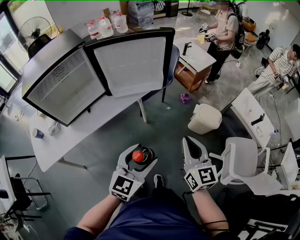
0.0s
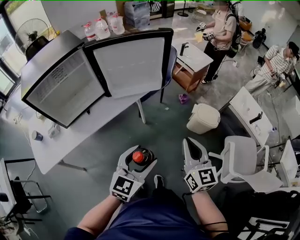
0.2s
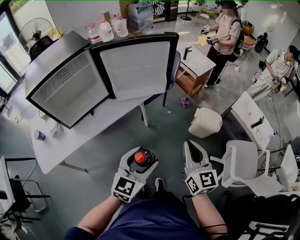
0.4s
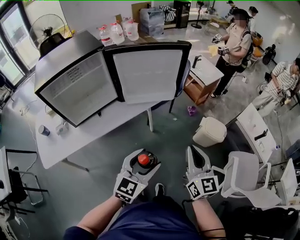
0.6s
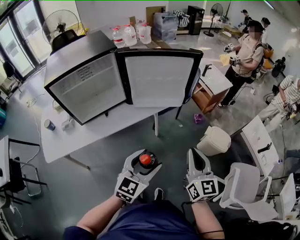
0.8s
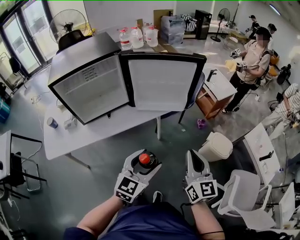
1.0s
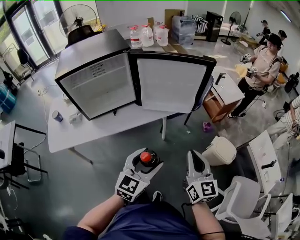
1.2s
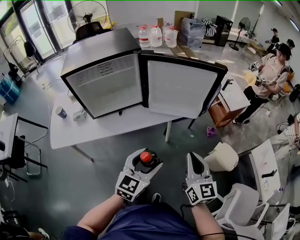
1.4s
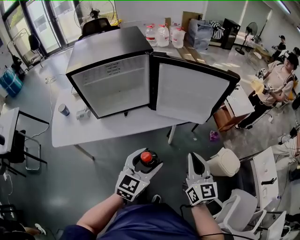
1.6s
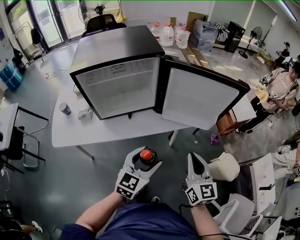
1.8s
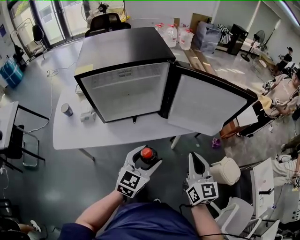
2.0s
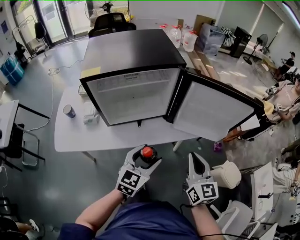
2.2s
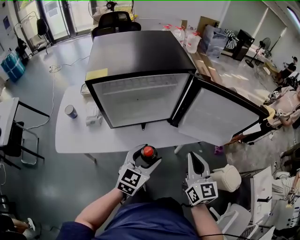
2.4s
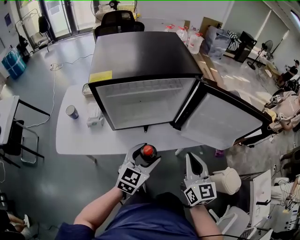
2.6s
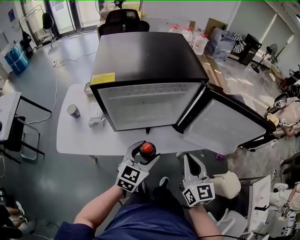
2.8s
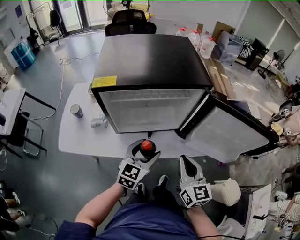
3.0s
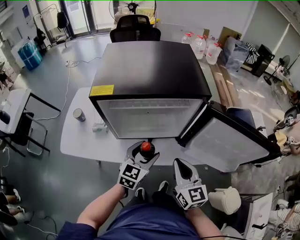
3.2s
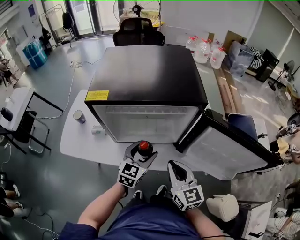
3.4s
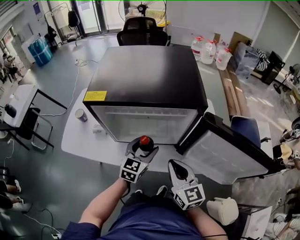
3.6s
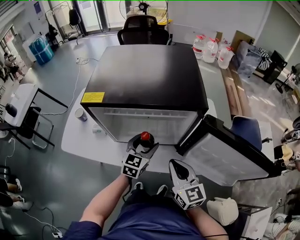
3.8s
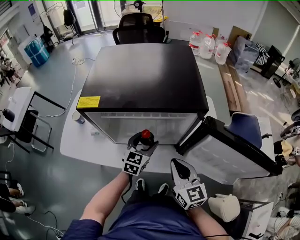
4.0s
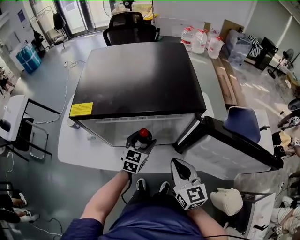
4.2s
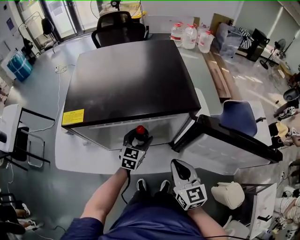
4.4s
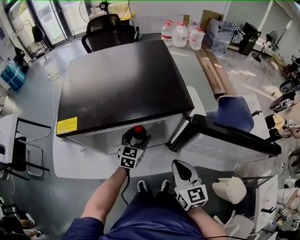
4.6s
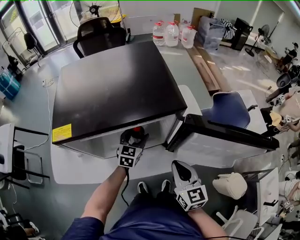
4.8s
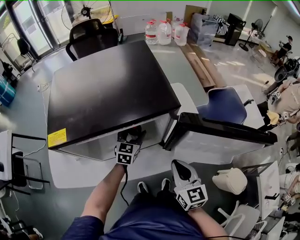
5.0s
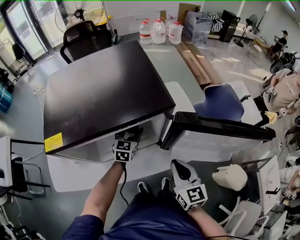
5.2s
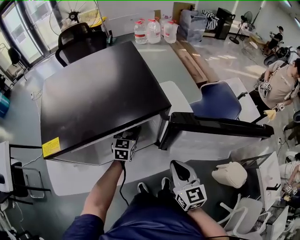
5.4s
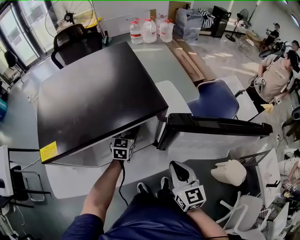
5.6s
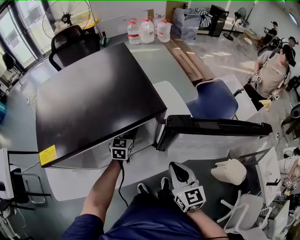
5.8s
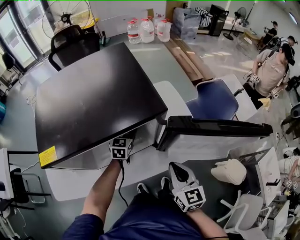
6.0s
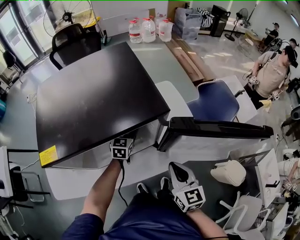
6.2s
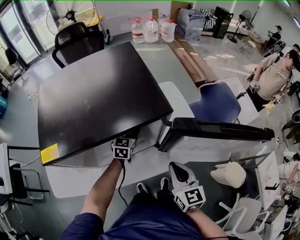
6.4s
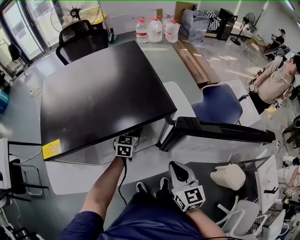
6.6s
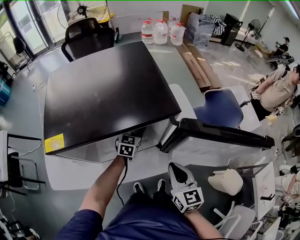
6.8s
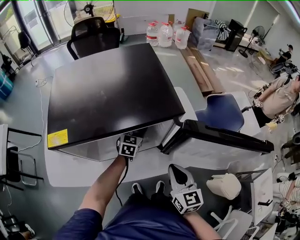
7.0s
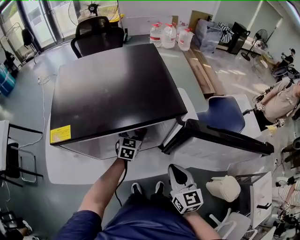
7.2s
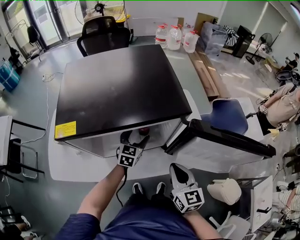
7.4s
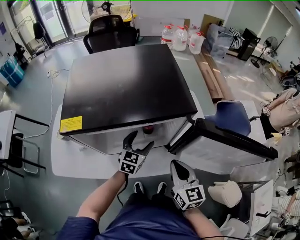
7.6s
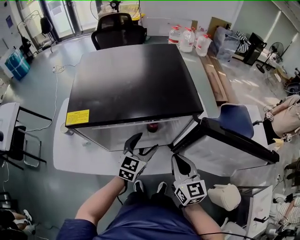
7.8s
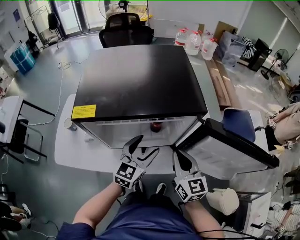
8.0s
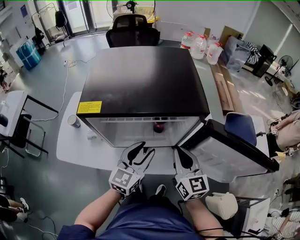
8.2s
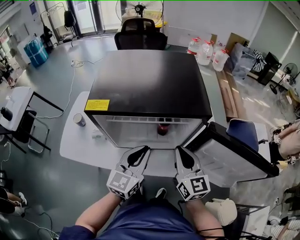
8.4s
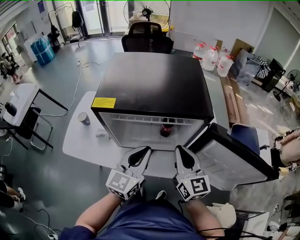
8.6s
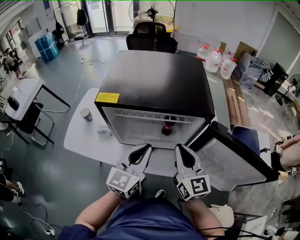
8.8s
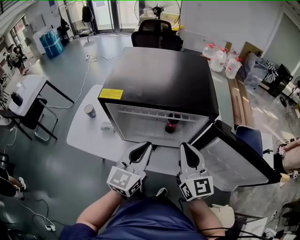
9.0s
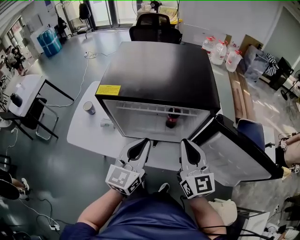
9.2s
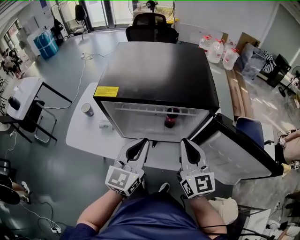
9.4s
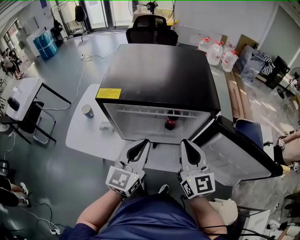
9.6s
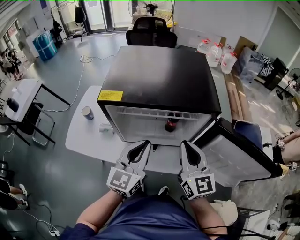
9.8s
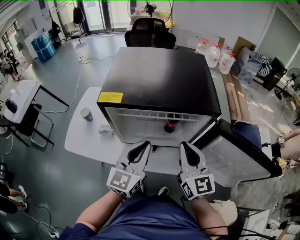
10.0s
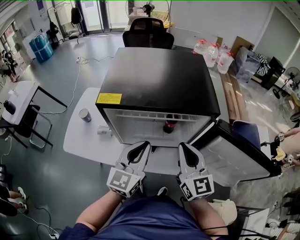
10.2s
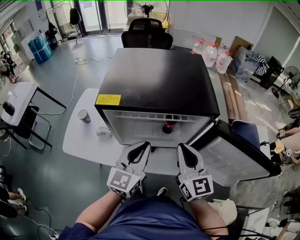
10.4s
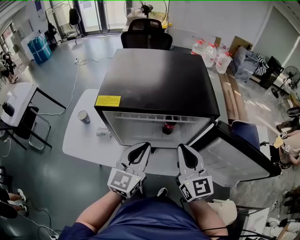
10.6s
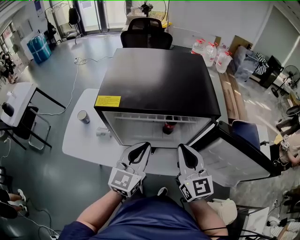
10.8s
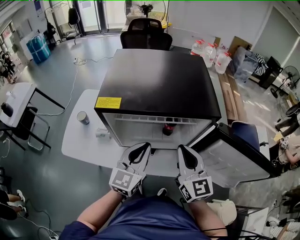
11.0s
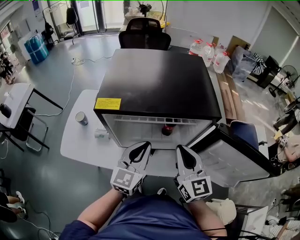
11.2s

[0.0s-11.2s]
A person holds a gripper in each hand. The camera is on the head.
0.0s to 1.6s: Both grippers travel together to the left and forward, some 15 cm. The left gripper turns by roughly 20 degrees.
1.6s to 3.2s: The left gripper heads forward and to the left, covering about 30 cm, while the right gripper heads to the left and forward, covering roughly 30 cm, and swivels some 20 degrees.
3.2s to 4.8s: The right gripper moves to the right and forward, approximately 10 cm. The left gripper moves forward and downward, approximately 20 cm.
4.8s to 6.4s: The left gripper moves forward, roughly 5 cm.
6.4s to 8.0s: The right gripper is displaced to the left by approximately 5 cm; the left gripper travels backward and upward by roughly 20 cm.
8.0s to 9.6s: The left gripper heads upward, to the left and backward, covering some 15 cm, and closes up. The right gripper is displaced upward by approximately 10 cm.
9.6s to 11.2s: The left gripper ends up roughly 5 cm from where it was.

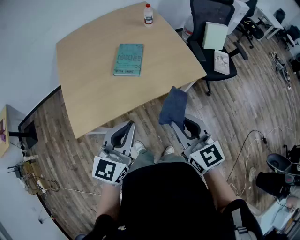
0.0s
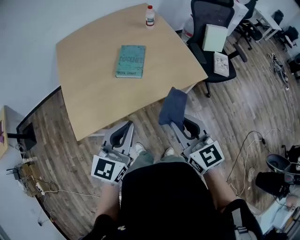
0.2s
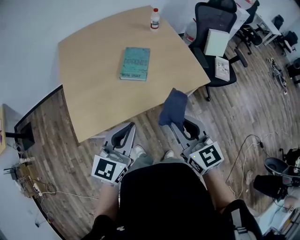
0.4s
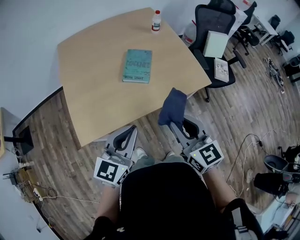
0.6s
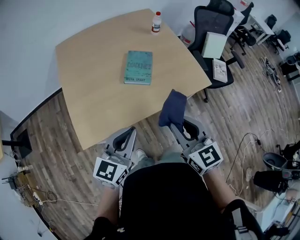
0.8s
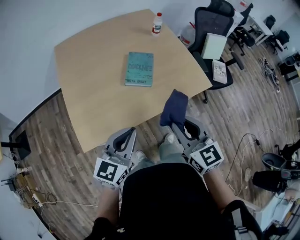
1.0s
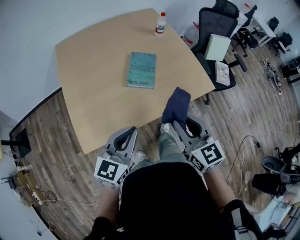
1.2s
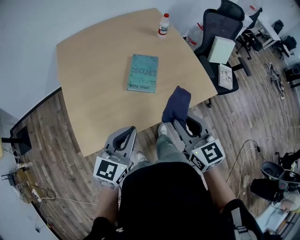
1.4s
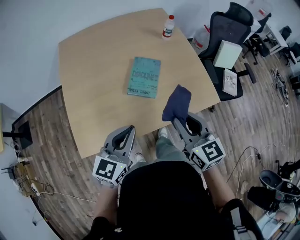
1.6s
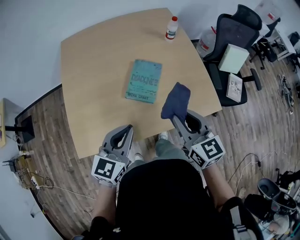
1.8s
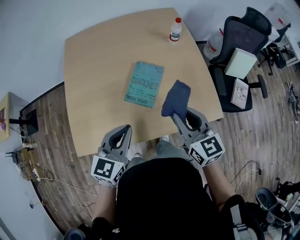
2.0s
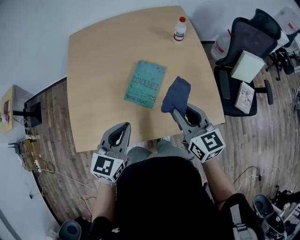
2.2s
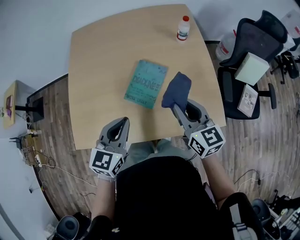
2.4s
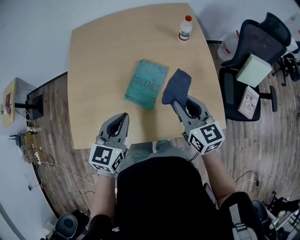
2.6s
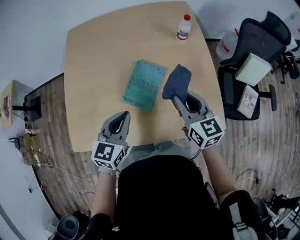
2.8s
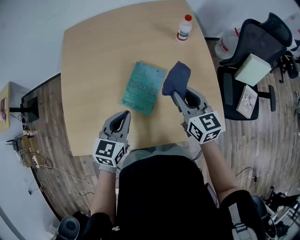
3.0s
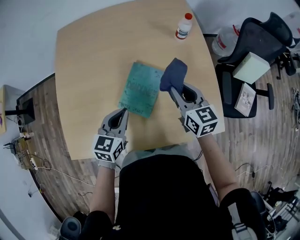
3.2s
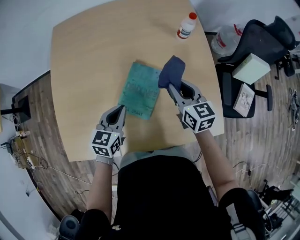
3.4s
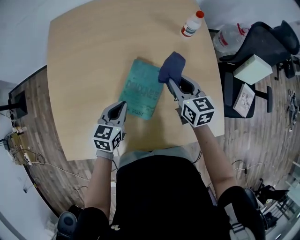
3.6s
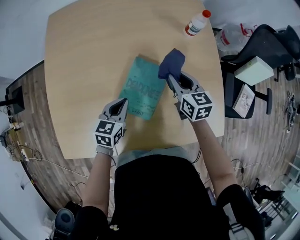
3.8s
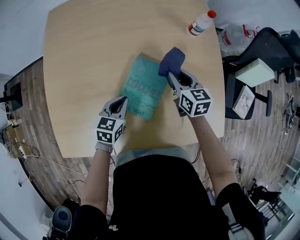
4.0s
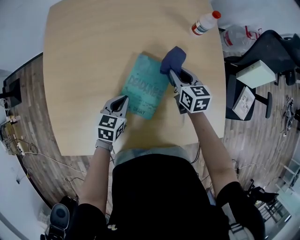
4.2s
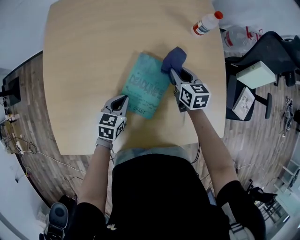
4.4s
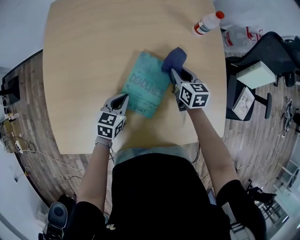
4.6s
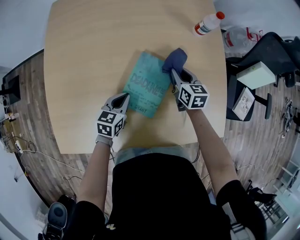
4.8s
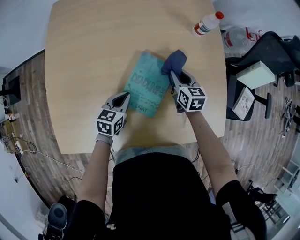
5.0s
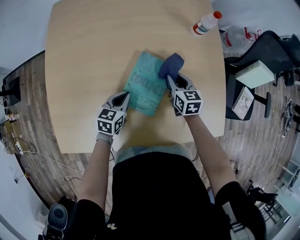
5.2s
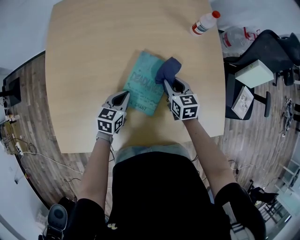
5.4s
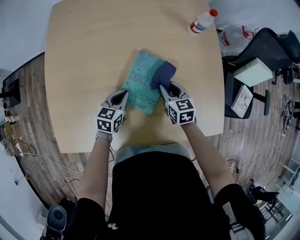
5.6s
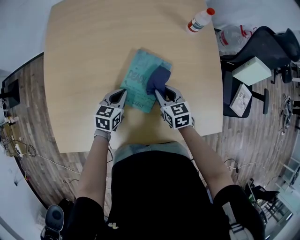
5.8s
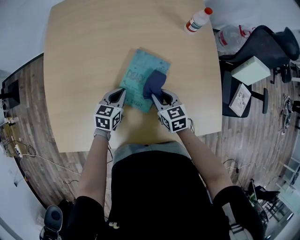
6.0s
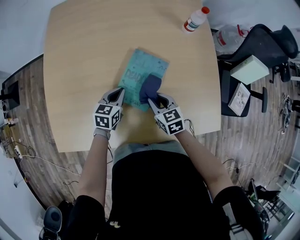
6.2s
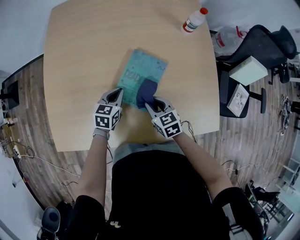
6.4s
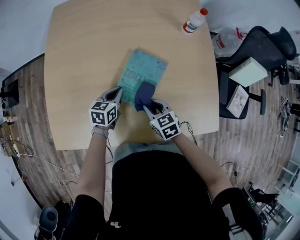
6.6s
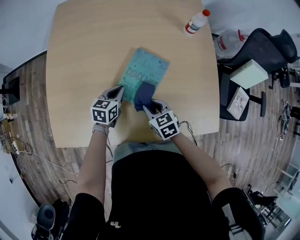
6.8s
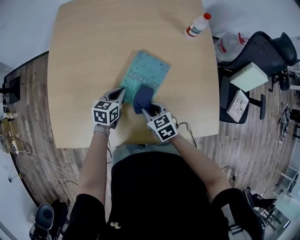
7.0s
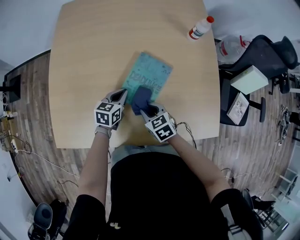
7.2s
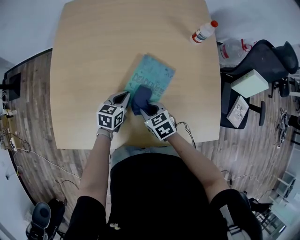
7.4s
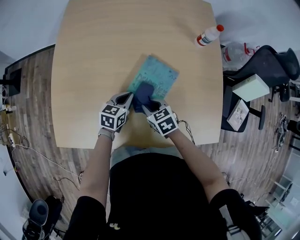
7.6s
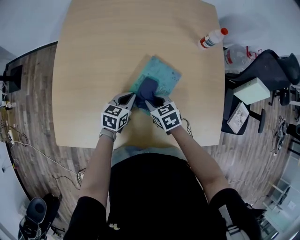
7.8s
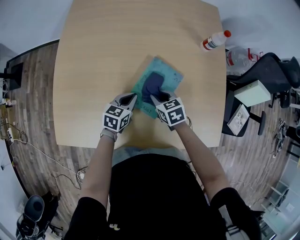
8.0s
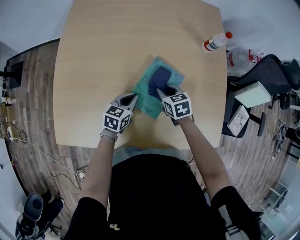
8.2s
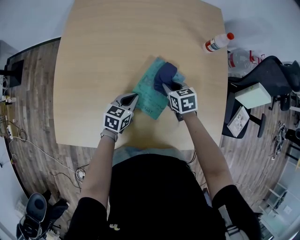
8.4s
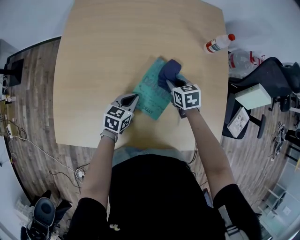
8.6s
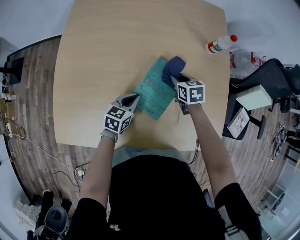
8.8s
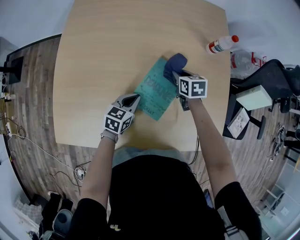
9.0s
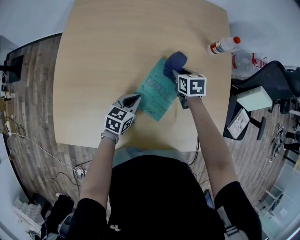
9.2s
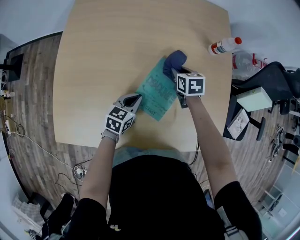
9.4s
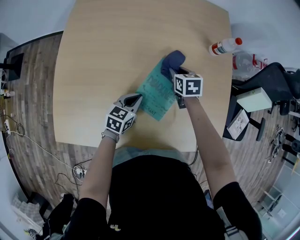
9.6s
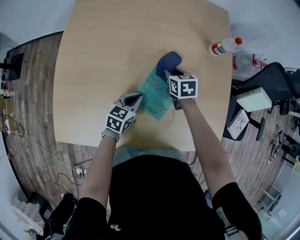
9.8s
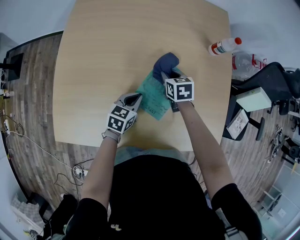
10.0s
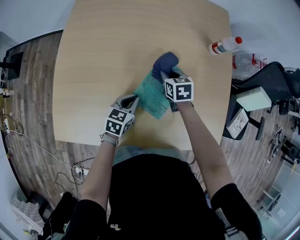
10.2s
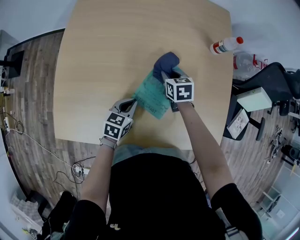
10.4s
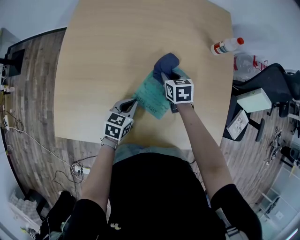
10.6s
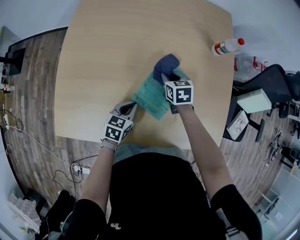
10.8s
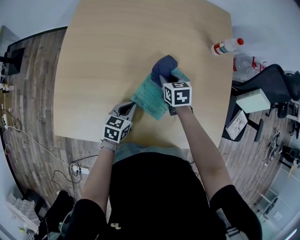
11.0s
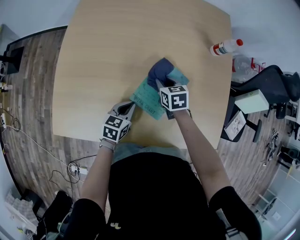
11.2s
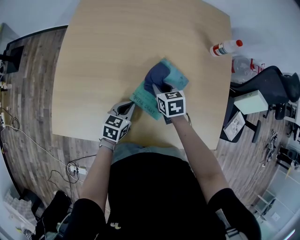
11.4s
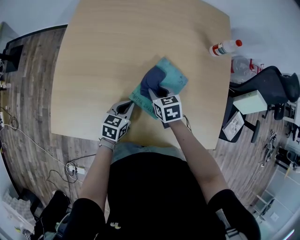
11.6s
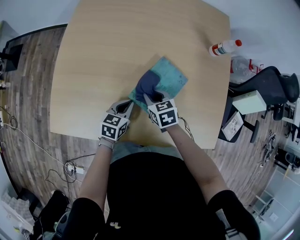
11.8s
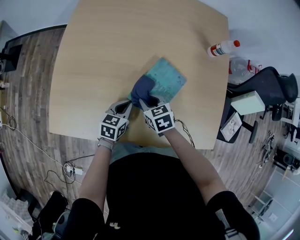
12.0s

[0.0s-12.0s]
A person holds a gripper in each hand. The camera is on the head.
0.0s to 1.6s: Both grippers move forward and to the left, about 15 cm.
1.6s to 3.0s: The right gripper is displaced forward by about 25 cm. The left gripper travels forward and downward by about 20 cm, and rotates roughly 20 degrees.
3.0s to 4.4s: Both grippers travel together downward and forward, about 20 cm. The right gripper turns by approximately 20 degrees.
4.4s to 6.0s: The right gripper moves backward, roughly 15 cm.
6.0s to 7.6s: The right gripper moves to the left, roughly 10 cm, and turns by some 20 degrees.
7.6s to 9.0s: The right gripper moves forward and to the right, roughly 20 cm.
9.0s to 10.4s: The right gripper heads to the left, covering about 5 cm.
10.4s to 12.0s: The right gripper goes roughly 15 cm backward and to the left.

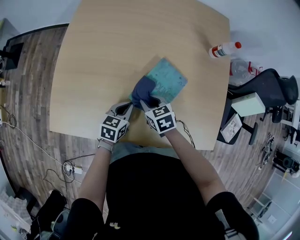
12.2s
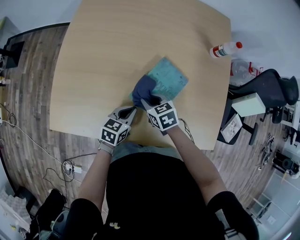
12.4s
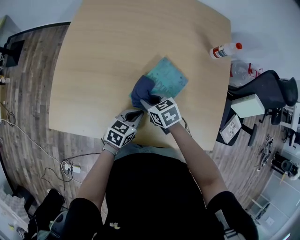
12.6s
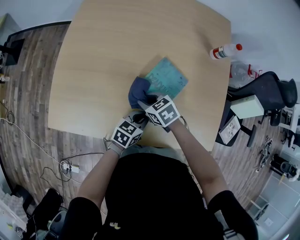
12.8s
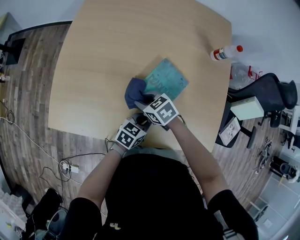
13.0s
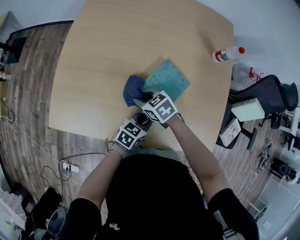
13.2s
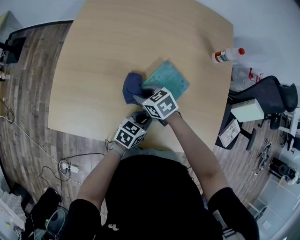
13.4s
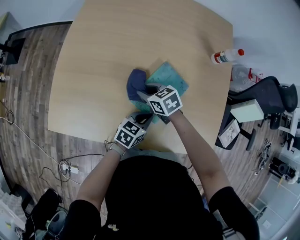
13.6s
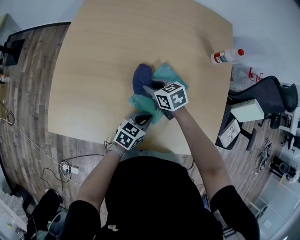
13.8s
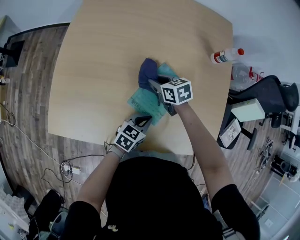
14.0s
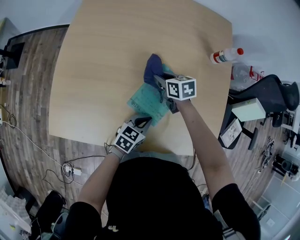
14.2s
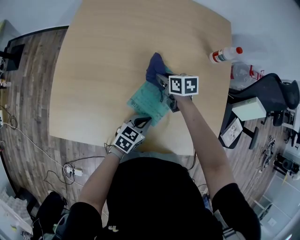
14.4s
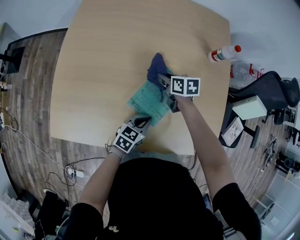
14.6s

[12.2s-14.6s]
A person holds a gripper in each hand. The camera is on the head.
12.2s to 13.4s: The right gripper moves approximately 5 cm. The left gripper ends up approximately 10 cm from where it was.
13.4s to 14.6s: The right gripper ends up approximately 15 cm from where it was, and rotates roughly 40 degrees.
